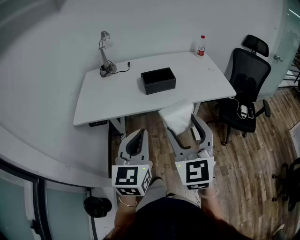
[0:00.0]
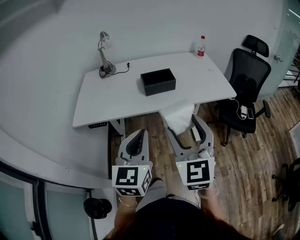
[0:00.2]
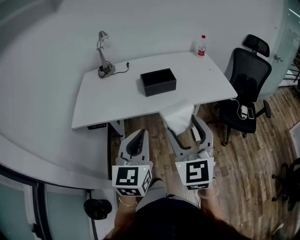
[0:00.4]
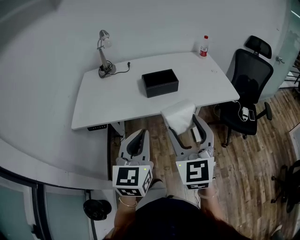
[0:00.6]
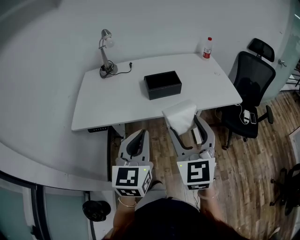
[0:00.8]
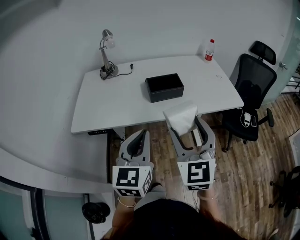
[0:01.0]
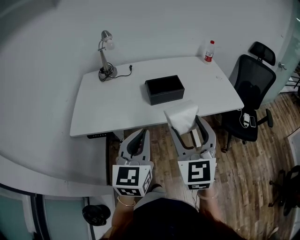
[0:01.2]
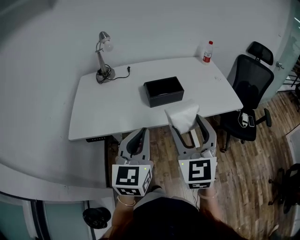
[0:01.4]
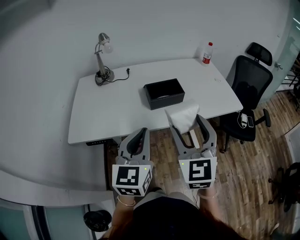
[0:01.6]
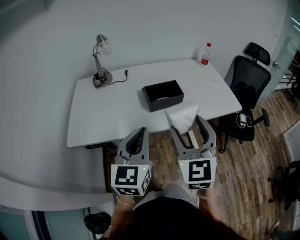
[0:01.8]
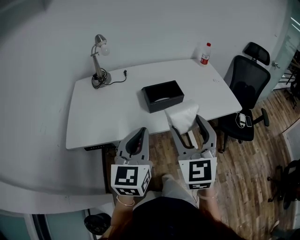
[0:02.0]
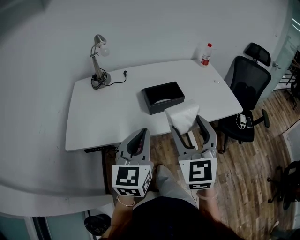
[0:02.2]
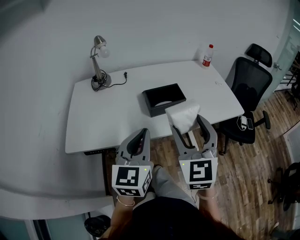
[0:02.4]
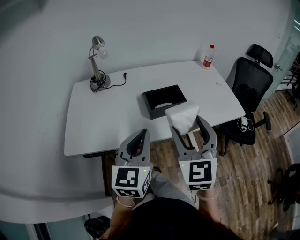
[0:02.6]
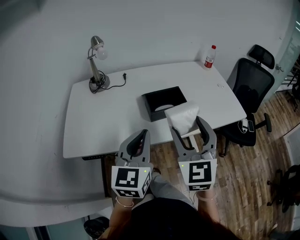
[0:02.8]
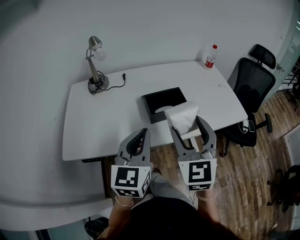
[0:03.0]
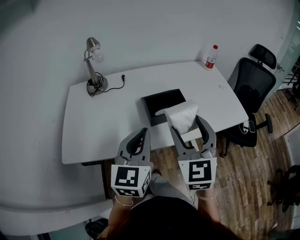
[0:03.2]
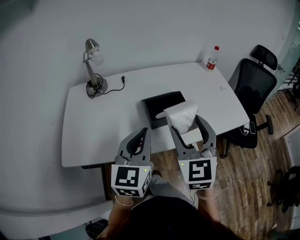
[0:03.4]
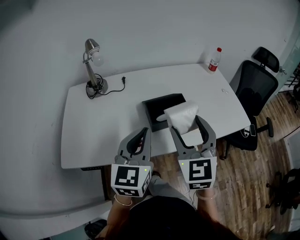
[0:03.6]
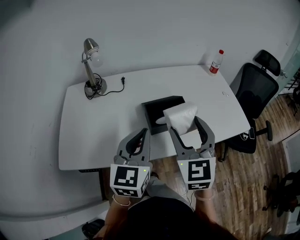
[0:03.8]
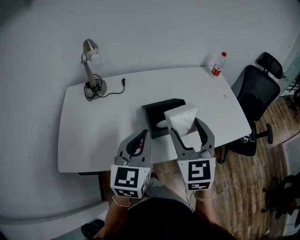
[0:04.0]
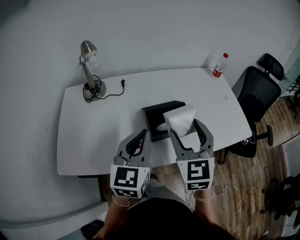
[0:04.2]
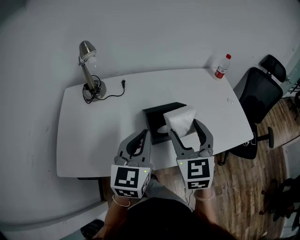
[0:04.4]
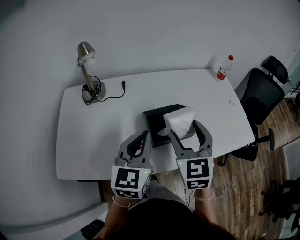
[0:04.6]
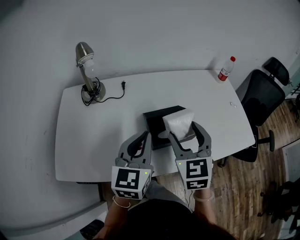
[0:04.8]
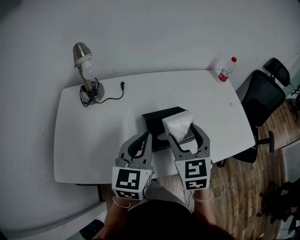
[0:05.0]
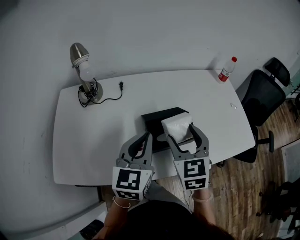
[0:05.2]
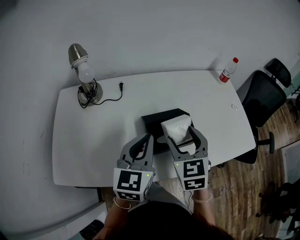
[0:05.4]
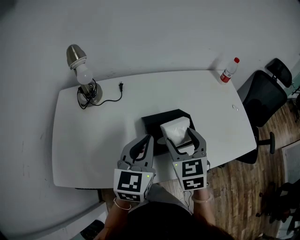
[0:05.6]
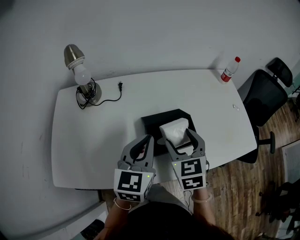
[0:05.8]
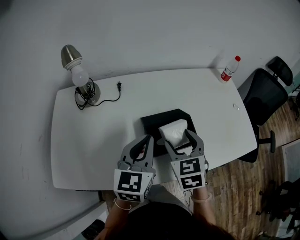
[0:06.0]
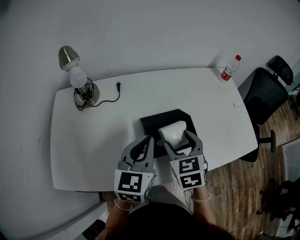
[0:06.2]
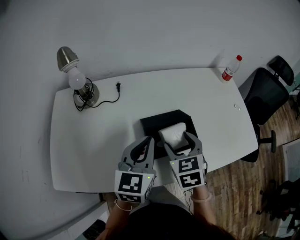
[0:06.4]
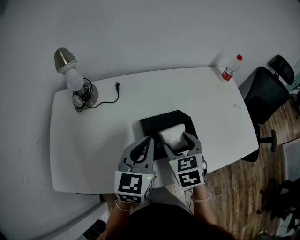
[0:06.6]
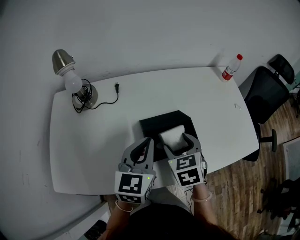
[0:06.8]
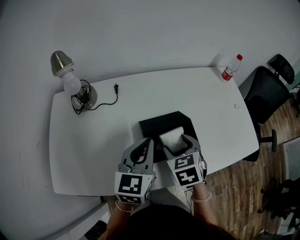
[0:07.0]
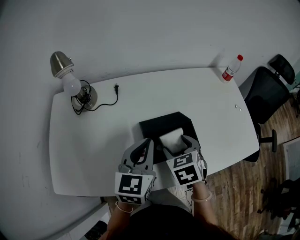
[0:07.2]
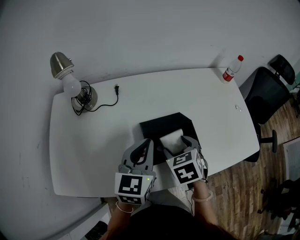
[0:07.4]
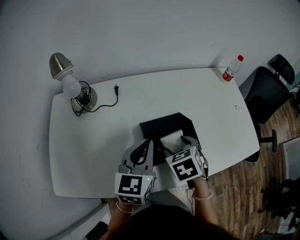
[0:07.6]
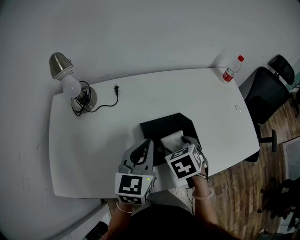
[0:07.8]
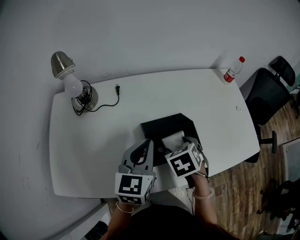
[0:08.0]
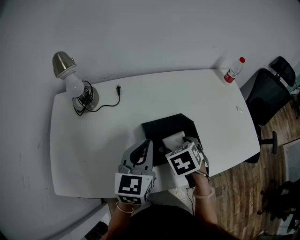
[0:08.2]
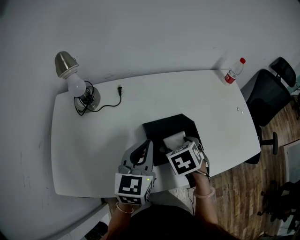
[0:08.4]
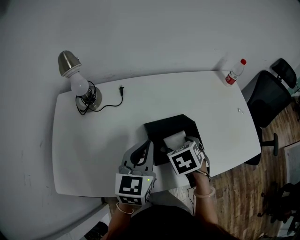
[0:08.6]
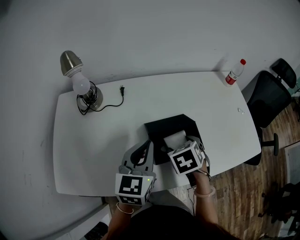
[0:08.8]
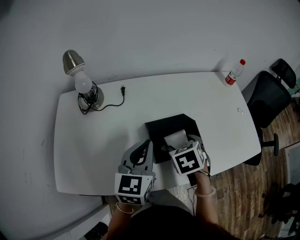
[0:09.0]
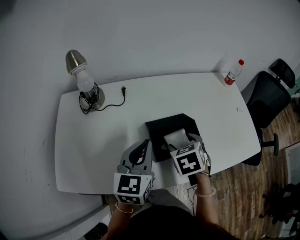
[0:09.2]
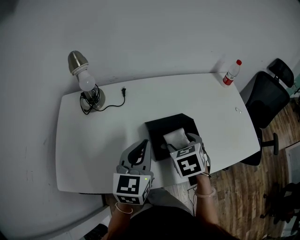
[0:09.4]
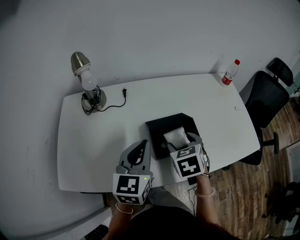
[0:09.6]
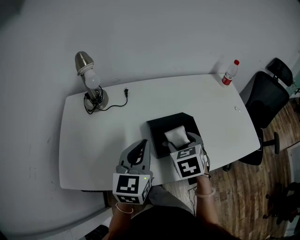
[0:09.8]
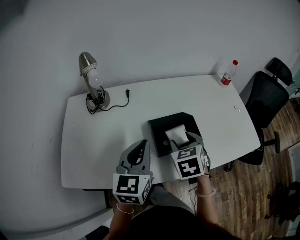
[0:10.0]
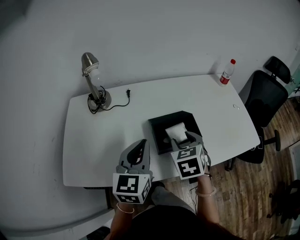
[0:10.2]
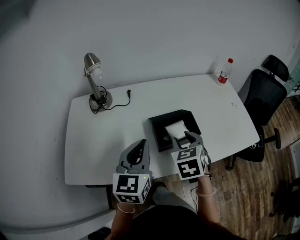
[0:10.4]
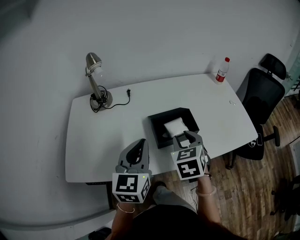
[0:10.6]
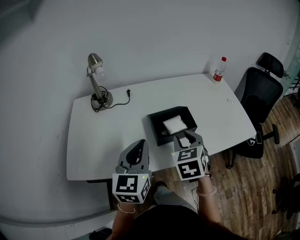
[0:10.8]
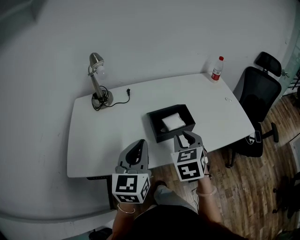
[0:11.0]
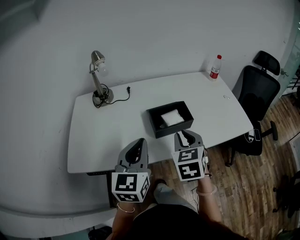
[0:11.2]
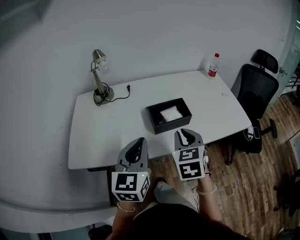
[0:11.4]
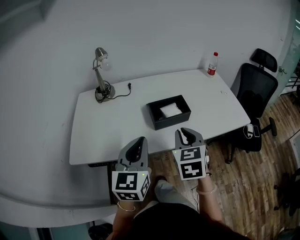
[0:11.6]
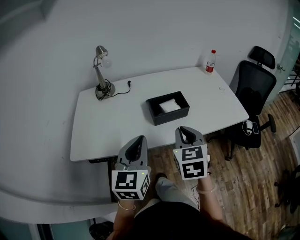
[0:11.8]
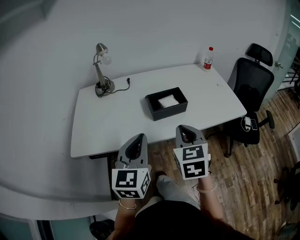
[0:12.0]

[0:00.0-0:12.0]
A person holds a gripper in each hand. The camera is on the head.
0.0 to 1.6 s: Both grippers move forward, approximately 15 cm.
1.6 to 3.0 s: The grippers both shift forward by roughly 10 cm.
3.0 to 4.4 s: The two grippers go some 15 cm forward.
4.4 to 6.0 s: The left gripper travels forward by about 5 cm. Meanwhile the right gripper moves downward and forward, roughly 10 cm.
6.0 to 7.6 s: The right gripper travels downward by approximately 5 cm, and changes its angle by approximately 20 degrees.
7.6 to 9.0 s: The grippers move only a little.
9.0 to 10.4 s: The right gripper heads upward and backward, covering approximately 10 cm, changes its angle by approximately 20 degrees, and closes its fingers. Meanwhile the left gripper goes about 10 cm backward.
10.4 to 12.0 s: The grippers both shift backward by some 20 cm. The right gripper closes.

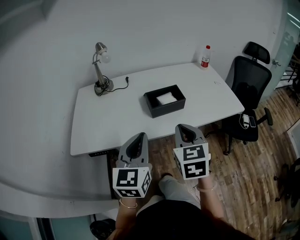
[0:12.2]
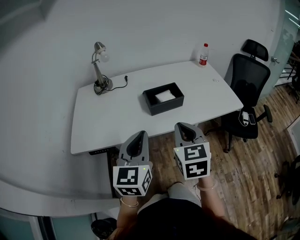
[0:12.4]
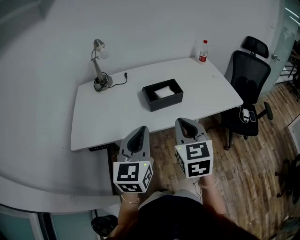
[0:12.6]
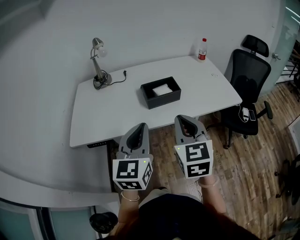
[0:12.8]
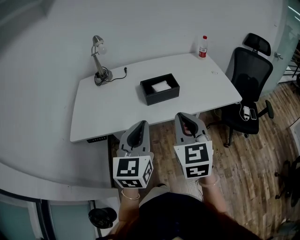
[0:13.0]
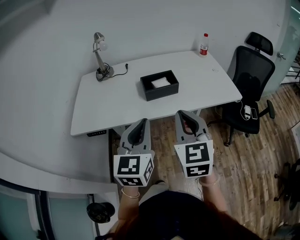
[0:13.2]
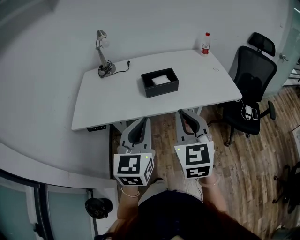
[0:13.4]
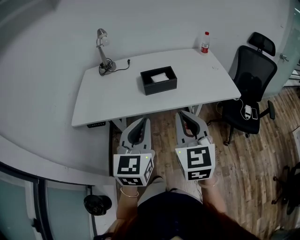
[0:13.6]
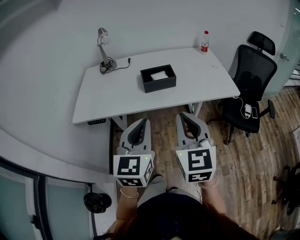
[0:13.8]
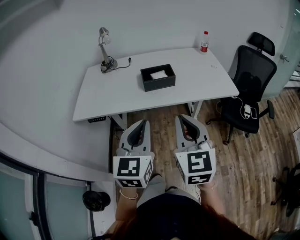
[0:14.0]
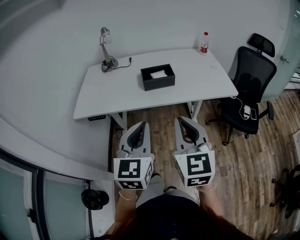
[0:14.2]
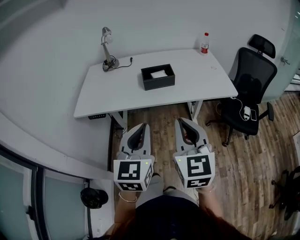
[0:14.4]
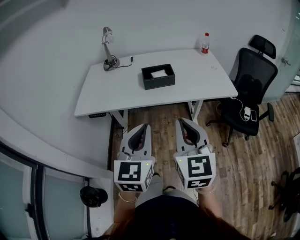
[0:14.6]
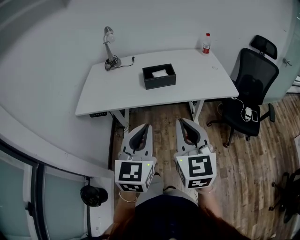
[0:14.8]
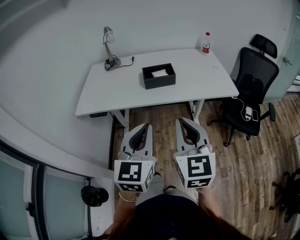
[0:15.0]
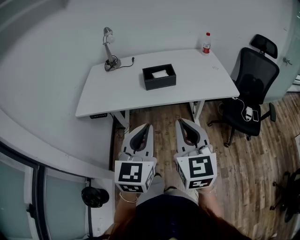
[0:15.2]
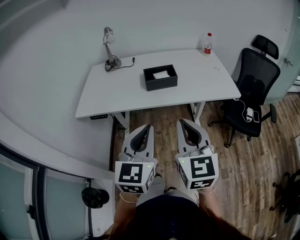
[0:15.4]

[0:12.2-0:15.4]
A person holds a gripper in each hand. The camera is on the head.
12.2 to 13.8 s: The right gripper heads backward, to the right and upward, covering approximately 15 cm; the left gripper goes some 15 cm backward and to the right.

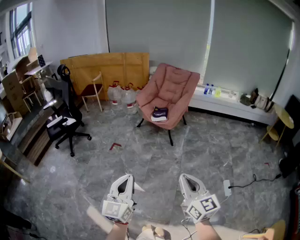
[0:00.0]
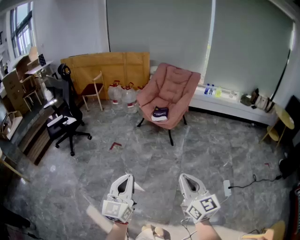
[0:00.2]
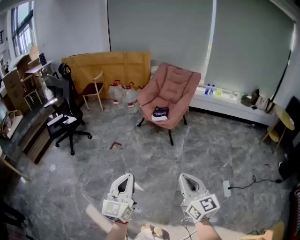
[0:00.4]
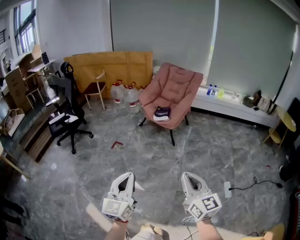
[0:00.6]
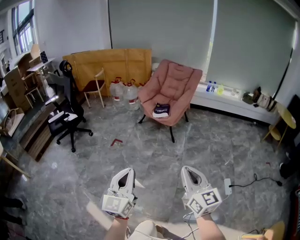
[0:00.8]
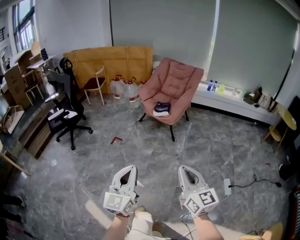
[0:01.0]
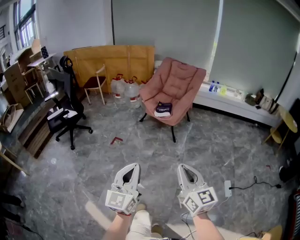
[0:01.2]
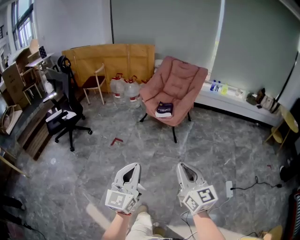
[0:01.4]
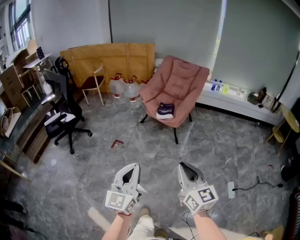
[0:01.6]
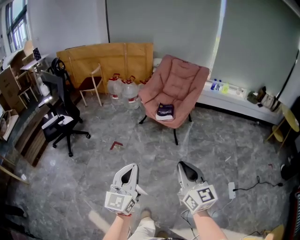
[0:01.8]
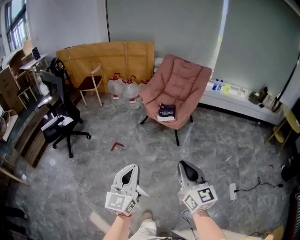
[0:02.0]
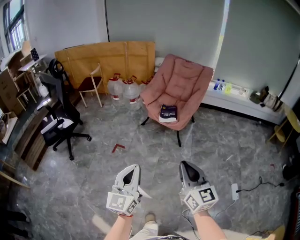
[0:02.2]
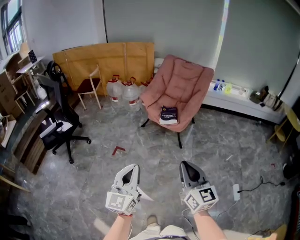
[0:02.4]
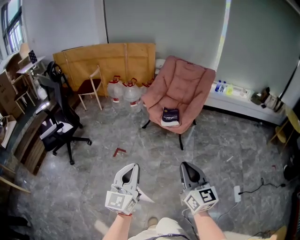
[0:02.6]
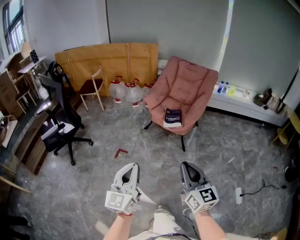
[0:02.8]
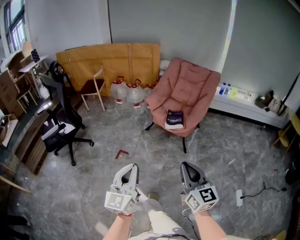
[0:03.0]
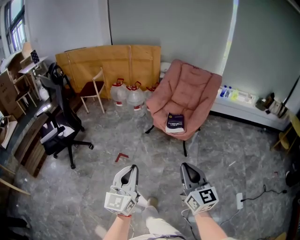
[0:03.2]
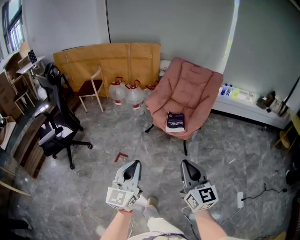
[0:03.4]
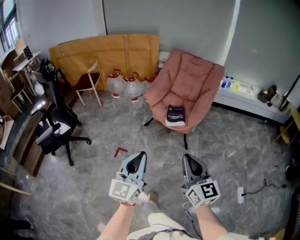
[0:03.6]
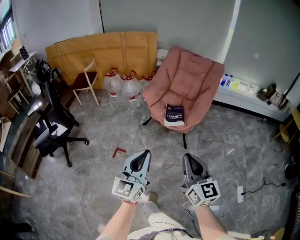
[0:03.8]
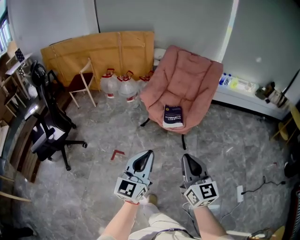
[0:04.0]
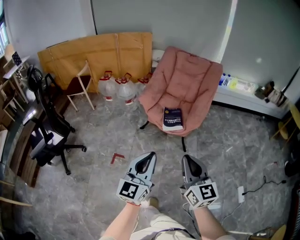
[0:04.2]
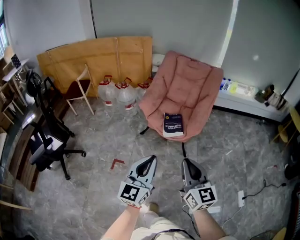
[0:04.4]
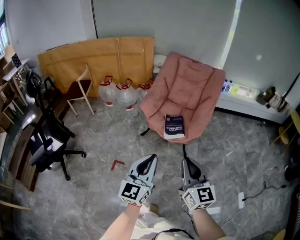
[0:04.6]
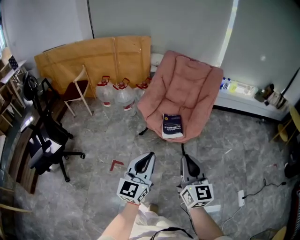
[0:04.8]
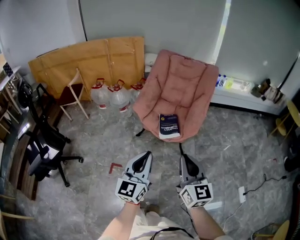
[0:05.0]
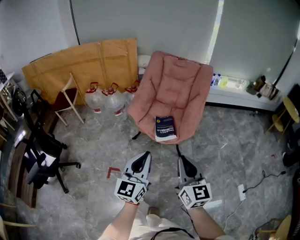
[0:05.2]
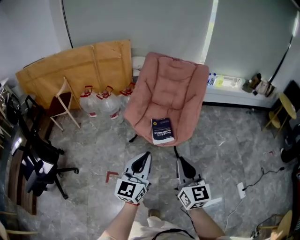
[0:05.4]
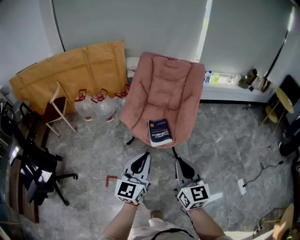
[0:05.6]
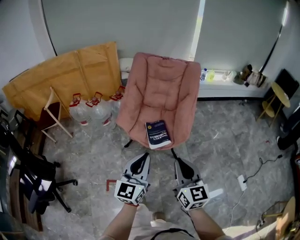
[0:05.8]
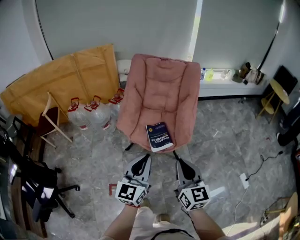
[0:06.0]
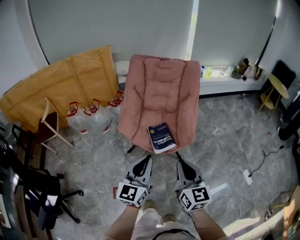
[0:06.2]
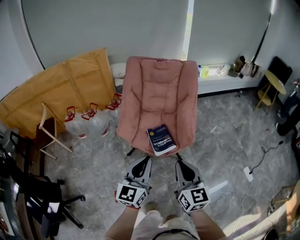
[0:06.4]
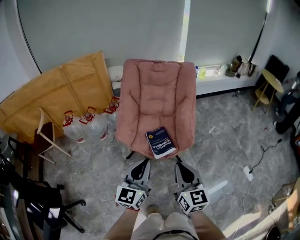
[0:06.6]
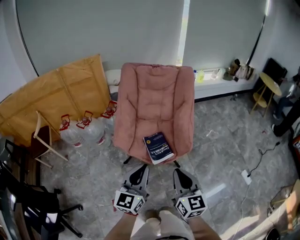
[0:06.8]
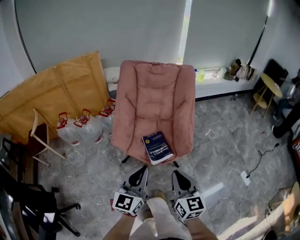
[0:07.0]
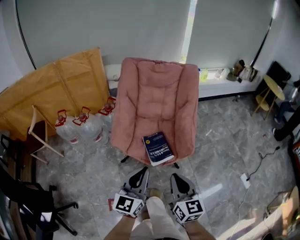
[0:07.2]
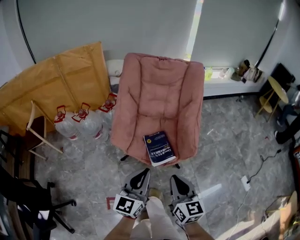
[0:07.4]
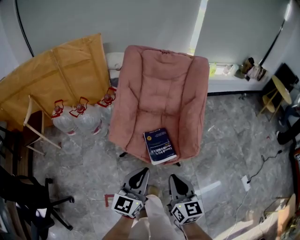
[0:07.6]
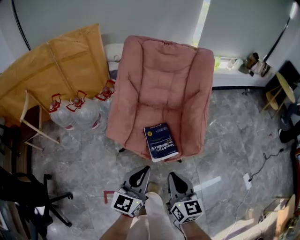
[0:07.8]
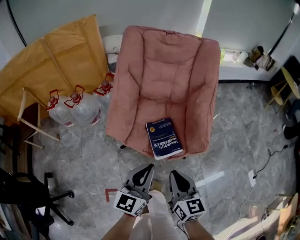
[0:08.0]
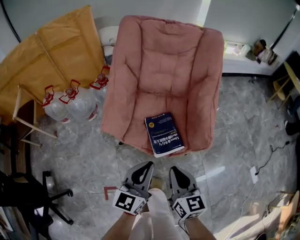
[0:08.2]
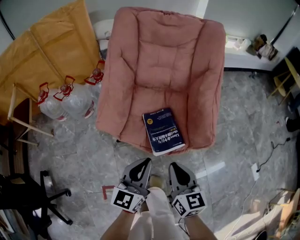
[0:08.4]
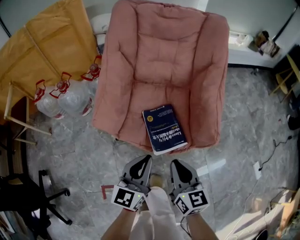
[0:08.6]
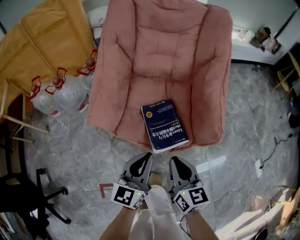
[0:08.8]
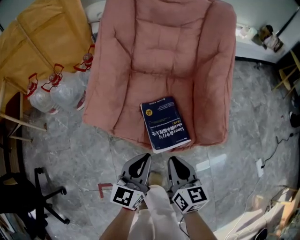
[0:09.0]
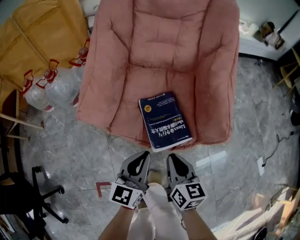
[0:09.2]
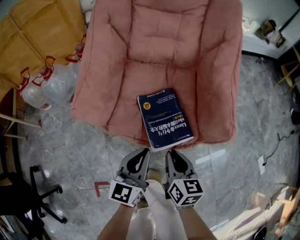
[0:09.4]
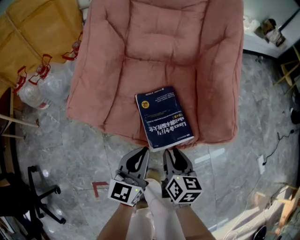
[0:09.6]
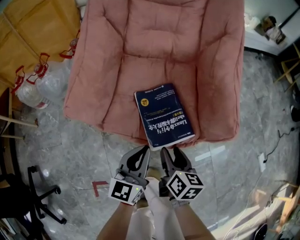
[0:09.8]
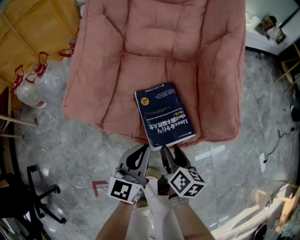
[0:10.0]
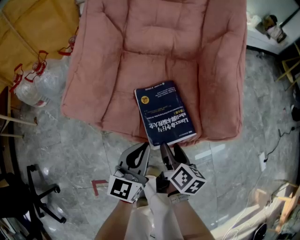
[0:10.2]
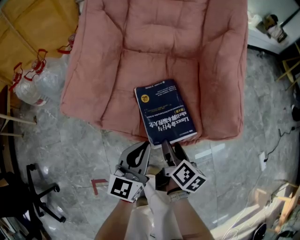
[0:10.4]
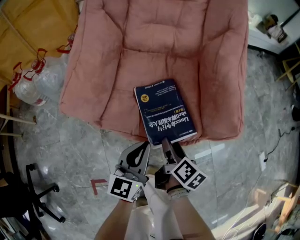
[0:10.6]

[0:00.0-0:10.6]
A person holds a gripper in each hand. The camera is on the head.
0.0 to 1.6 s: Both grippers travel together forward, roughly 15 cm.
1.6 to 3.0 s: The grippers both shift forward and to the left by roughly 20 cm.
3.0 to 4.6 s: Both grippers travel together forward, some 25 cm.
4.6 to 6.0 s: Both grippers travel together forward, roughly 15 cm.
6.0 to 7.6 s: The right gripper travels downward, forward and to the left by some 15 cm; the left gripper shifts about 15 cm downward and forward.
7.6 to 9.0 s: Both grippers move downward, approximately 25 cm.
9.0 to 10.6 s: The left gripper moves downward, some 10 cm. Meanwhile the right gripper travels downward by about 15 cm, twists approximately 40 degrees clockwise, seen from behind, and opens.
